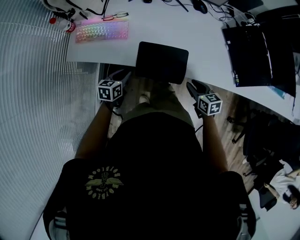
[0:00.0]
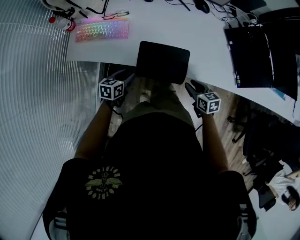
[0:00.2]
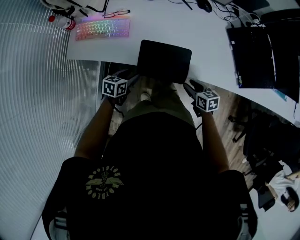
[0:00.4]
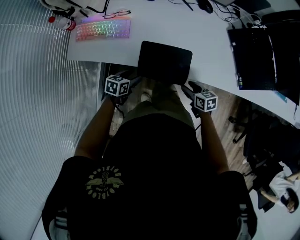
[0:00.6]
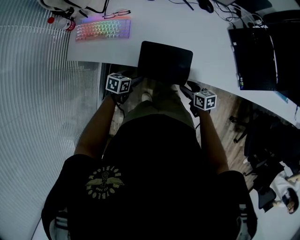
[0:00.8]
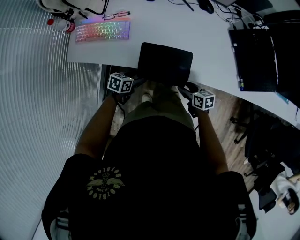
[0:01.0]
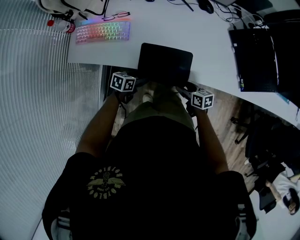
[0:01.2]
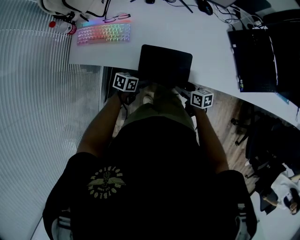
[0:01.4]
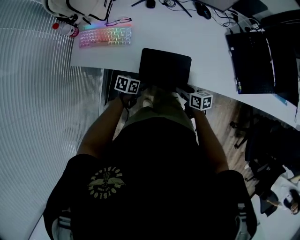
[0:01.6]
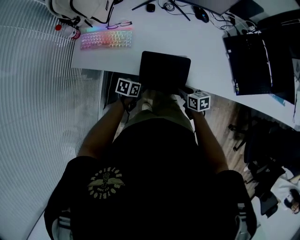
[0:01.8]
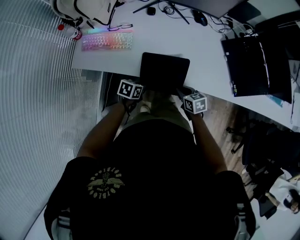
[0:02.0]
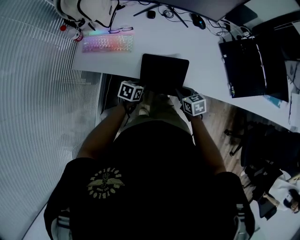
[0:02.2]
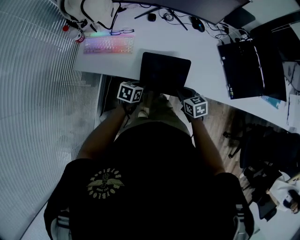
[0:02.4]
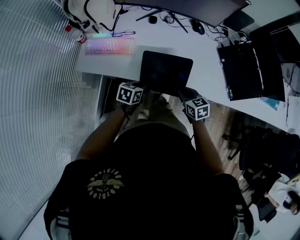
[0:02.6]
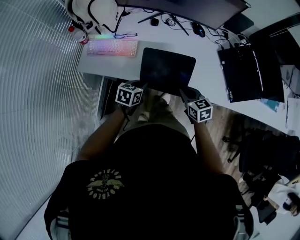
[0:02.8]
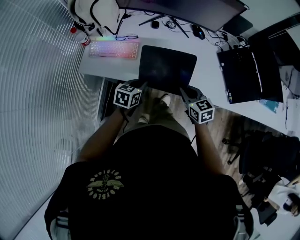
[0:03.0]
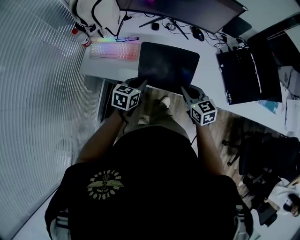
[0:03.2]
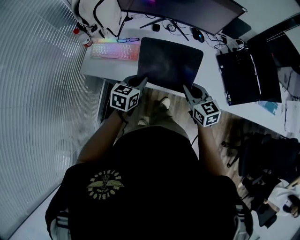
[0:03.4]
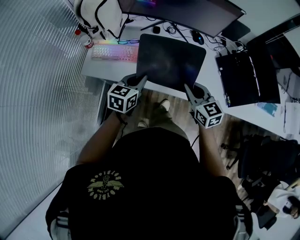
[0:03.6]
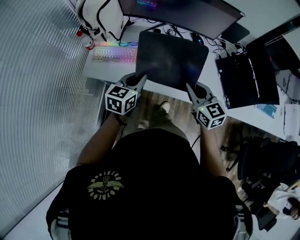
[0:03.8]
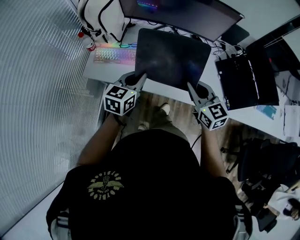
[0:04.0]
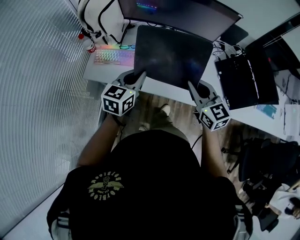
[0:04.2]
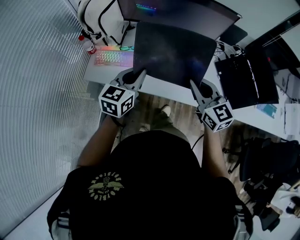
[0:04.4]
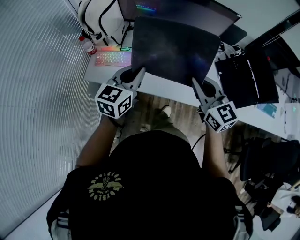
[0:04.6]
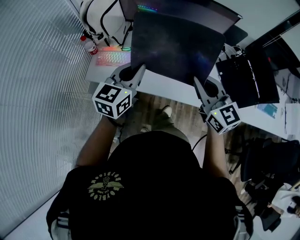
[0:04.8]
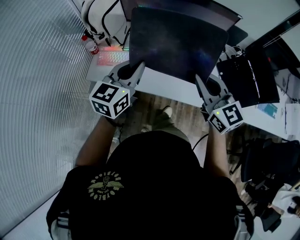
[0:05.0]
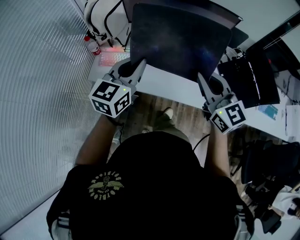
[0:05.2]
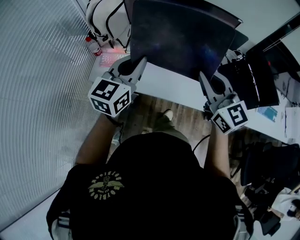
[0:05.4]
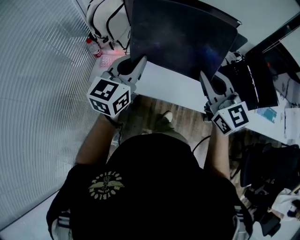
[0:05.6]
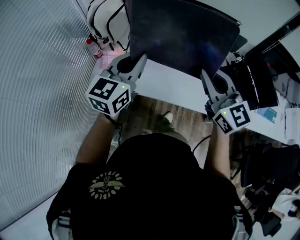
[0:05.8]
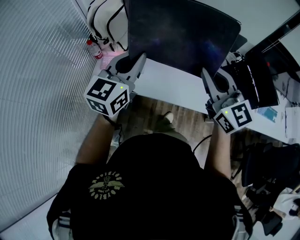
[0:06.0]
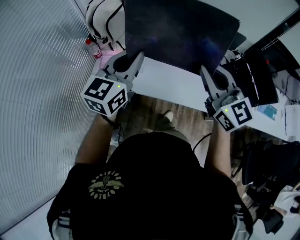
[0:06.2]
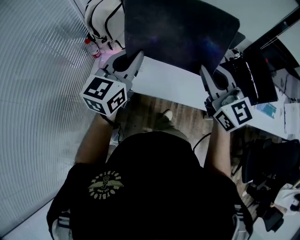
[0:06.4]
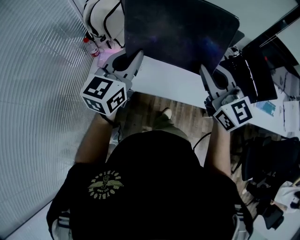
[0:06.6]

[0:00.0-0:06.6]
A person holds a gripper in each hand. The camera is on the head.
0.0 to 1.6 s: The left gripper shifts by some 10 cm, changes its angle by roughly 30 degrees, and opens, then closes once more; the right gripper moves downward, some 5 cm.
1.6 to 3.2 s: Both grippers move upward, about 20 cm. The right gripper turns by approximately 40 degrees, and closes; the left gripper changes its angle by roughly 30 degrees, and closes.
3.2 to 5.0 s: The grippers both shift upward by roughly 25 cm. The left gripper rotates approximately 30 degrees; the right gripper changes its angle by about 30 degrees.
5.0 to 6.6 s: The grippers both shift upward by approximately 10 cm.

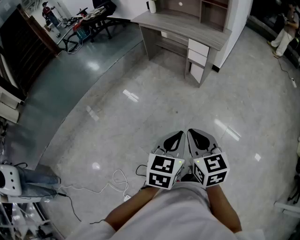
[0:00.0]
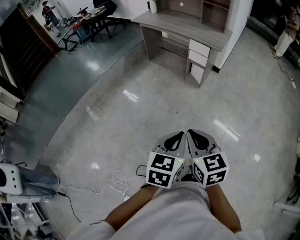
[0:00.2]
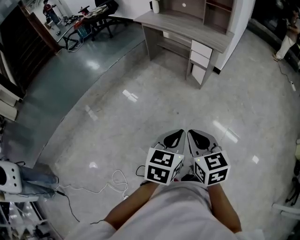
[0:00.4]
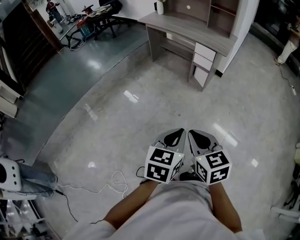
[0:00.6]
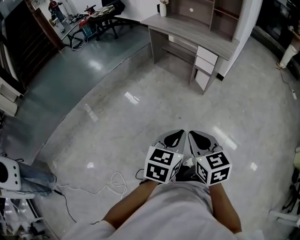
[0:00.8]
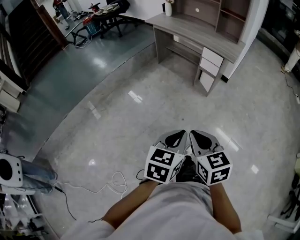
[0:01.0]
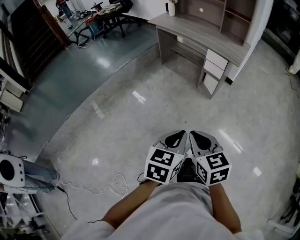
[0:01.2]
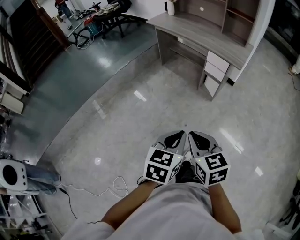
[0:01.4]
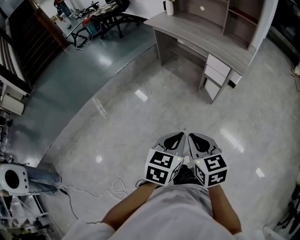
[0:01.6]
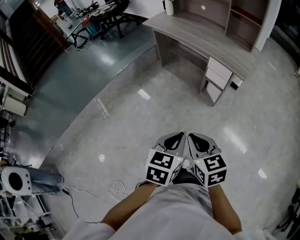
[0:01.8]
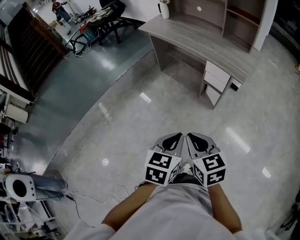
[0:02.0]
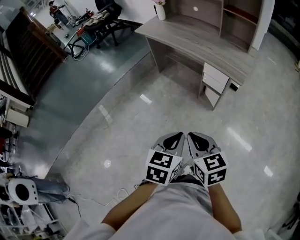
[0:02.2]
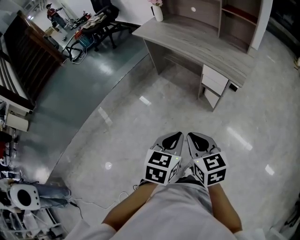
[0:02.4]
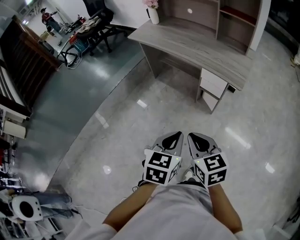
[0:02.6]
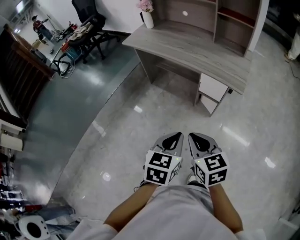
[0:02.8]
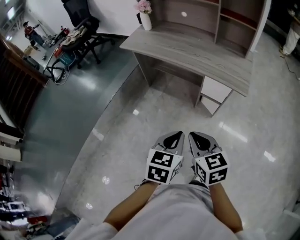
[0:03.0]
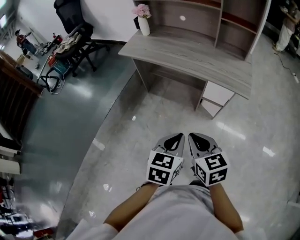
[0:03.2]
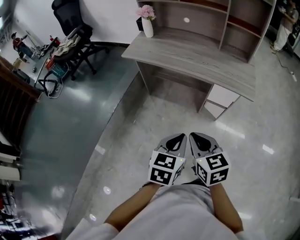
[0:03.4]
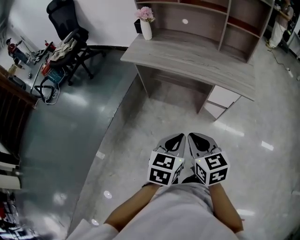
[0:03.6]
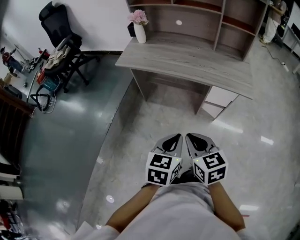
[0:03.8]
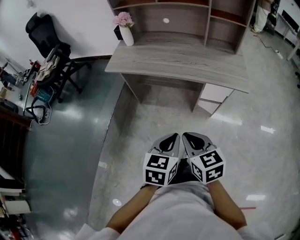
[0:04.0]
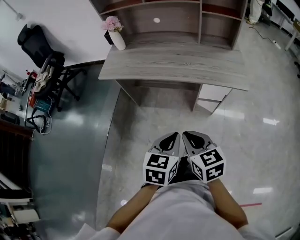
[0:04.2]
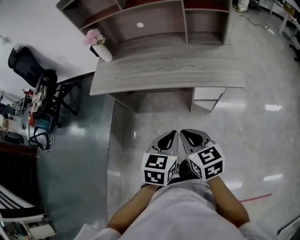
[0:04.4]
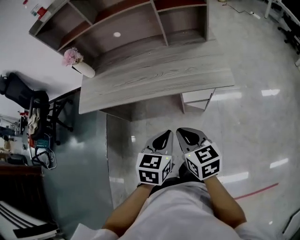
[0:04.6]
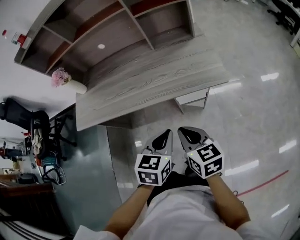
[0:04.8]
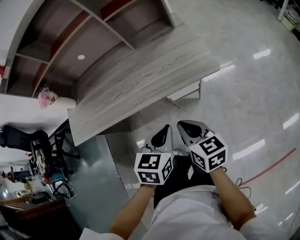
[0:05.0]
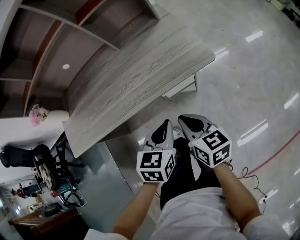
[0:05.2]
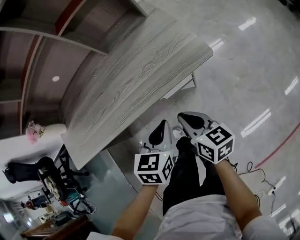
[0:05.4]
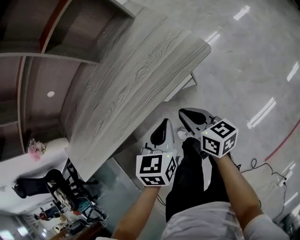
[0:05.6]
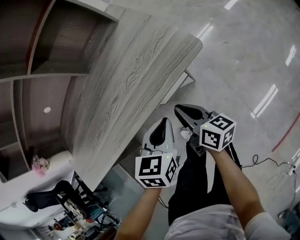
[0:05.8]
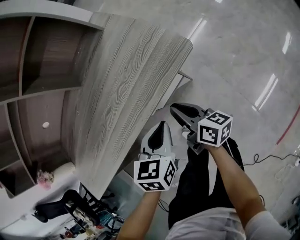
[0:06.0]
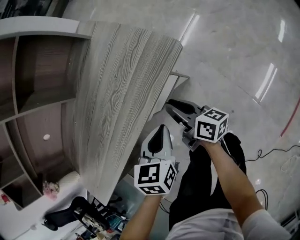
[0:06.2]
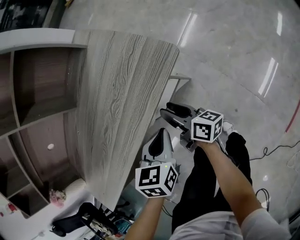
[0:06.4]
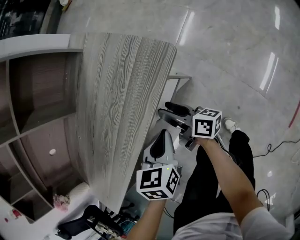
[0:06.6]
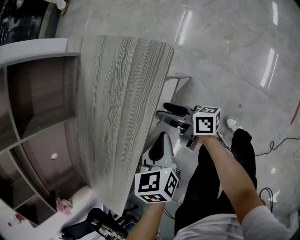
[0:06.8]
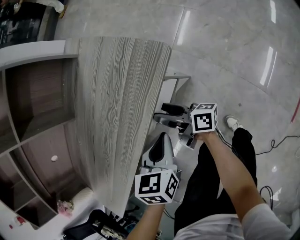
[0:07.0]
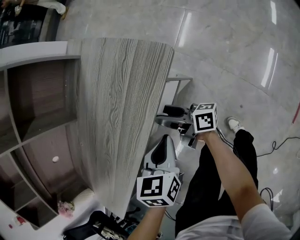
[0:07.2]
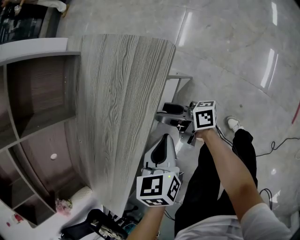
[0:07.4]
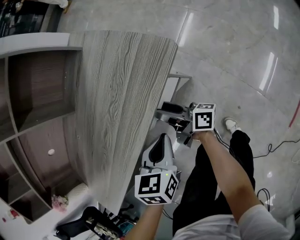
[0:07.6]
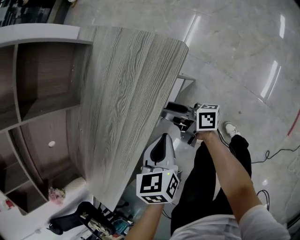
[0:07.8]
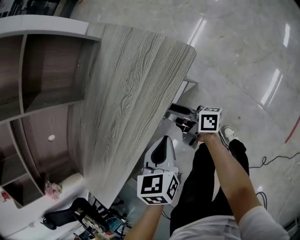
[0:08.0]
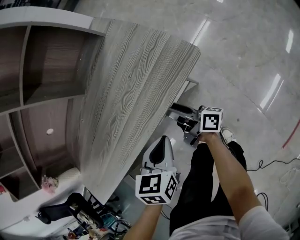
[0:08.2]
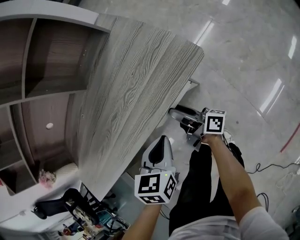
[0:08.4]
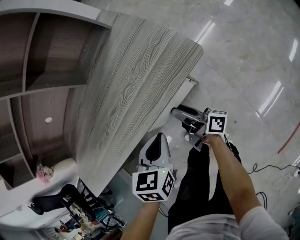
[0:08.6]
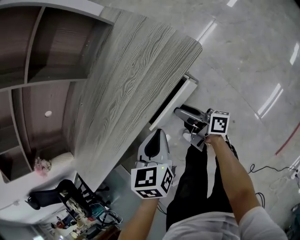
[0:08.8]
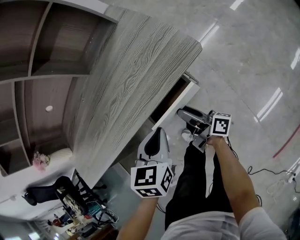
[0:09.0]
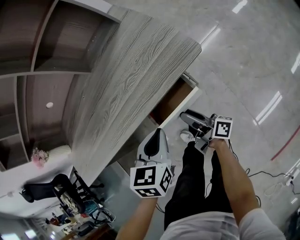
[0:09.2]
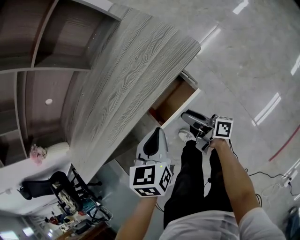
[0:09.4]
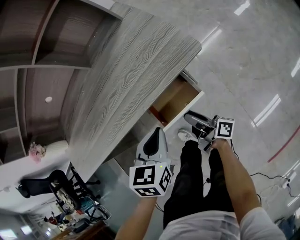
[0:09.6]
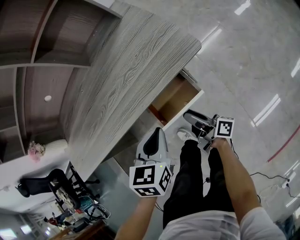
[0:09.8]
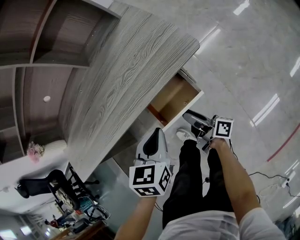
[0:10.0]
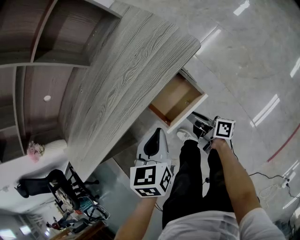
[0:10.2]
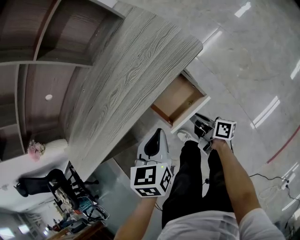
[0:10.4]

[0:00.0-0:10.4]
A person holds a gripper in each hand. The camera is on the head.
0.0 to 1.4 s: The two grippers go about 15 cm forward.
1.4 to 3.0 s: The grippers both shift forward by about 35 cm.
3.0 to 4.4 s: Both grippers move forward and to the left, about 20 cm. The right gripper changes its angle by roughly 20 degrees. Meanwhile the left gripper rotates approximately 20 degrees.
4.4 to 6.0 s: The right gripper moves approximately 40 cm, and changes its angle by about 70 degrees, while the left gripper moves roughly 35 cm, and turns by some 40 degrees.
6.0 to 7.4 s: The right gripper shifts approximately 5 cm forward, changes its angle by some 30 degrees, and opens.
7.4 to 9.0 s: The right gripper moves backward, roughly 5 cm. Meanwhile the left gripper travels upward by approximately 5 cm.
9.0 to 10.4 s: The right gripper ends up approximately 5 cm from where it was, and closes its fingers.

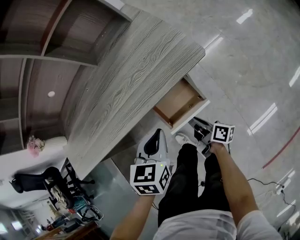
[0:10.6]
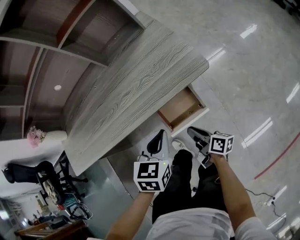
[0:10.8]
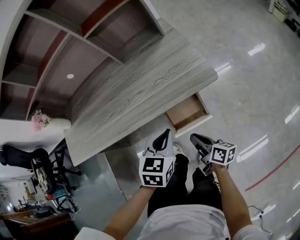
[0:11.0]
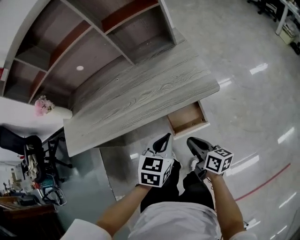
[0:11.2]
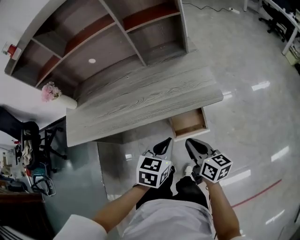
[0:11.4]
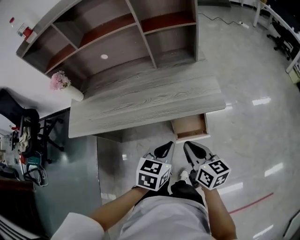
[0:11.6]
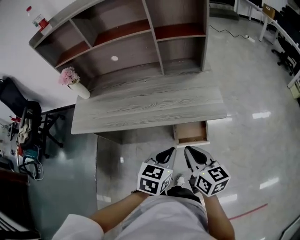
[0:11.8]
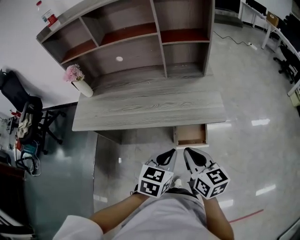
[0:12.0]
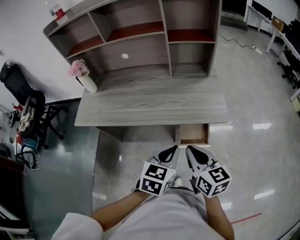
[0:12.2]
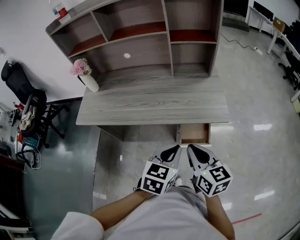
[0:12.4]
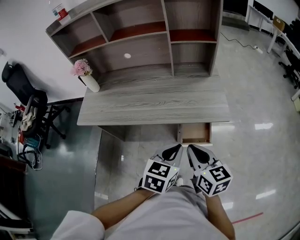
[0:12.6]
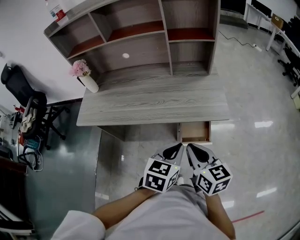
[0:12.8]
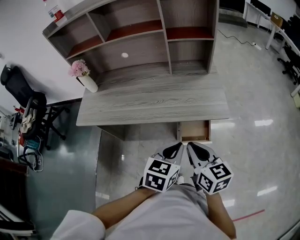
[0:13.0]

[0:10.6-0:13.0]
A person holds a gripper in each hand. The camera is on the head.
10.6 to 11.8 s: The right gripper goes about 35 cm upward, and rolls counterclockwise, seen from behind, by roughly 60 degrees; the left gripper shifts about 15 cm upward and backward.
11.8 to 13.0 s: The grippers stay close to where they were, moving slightly.

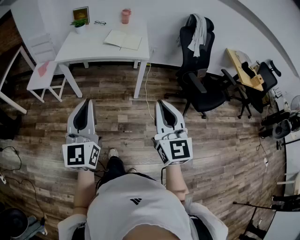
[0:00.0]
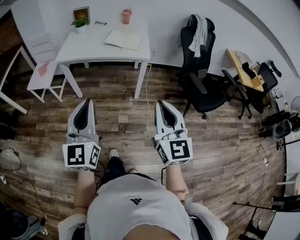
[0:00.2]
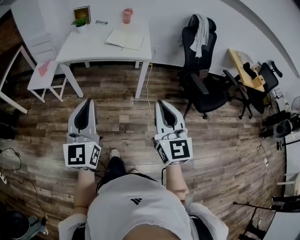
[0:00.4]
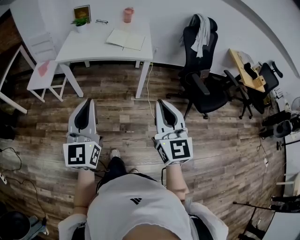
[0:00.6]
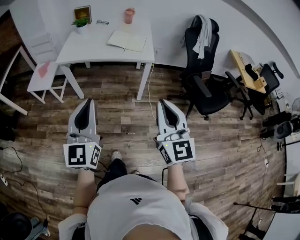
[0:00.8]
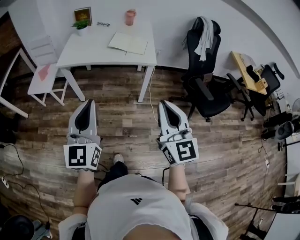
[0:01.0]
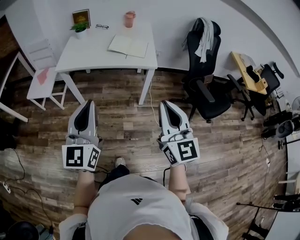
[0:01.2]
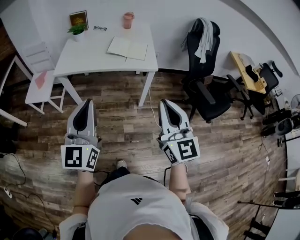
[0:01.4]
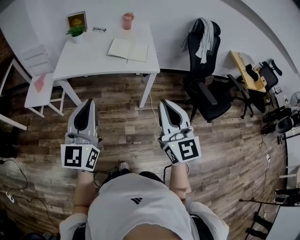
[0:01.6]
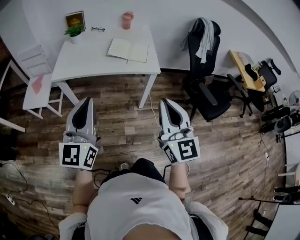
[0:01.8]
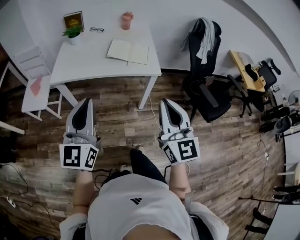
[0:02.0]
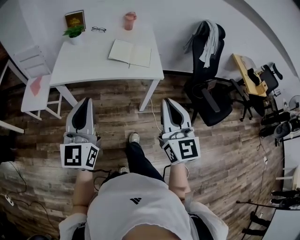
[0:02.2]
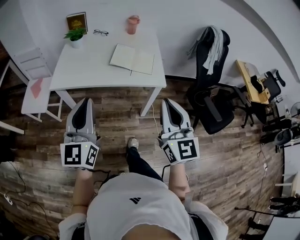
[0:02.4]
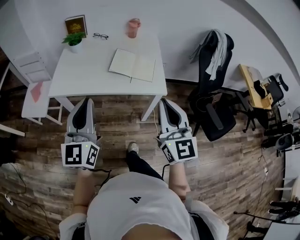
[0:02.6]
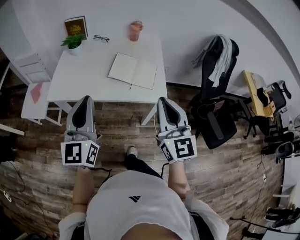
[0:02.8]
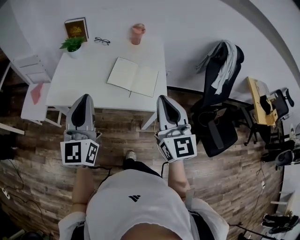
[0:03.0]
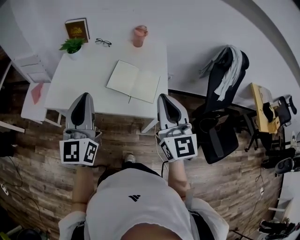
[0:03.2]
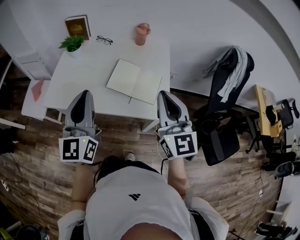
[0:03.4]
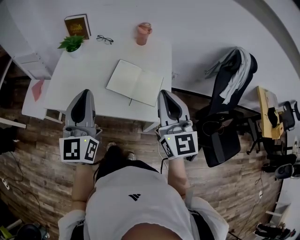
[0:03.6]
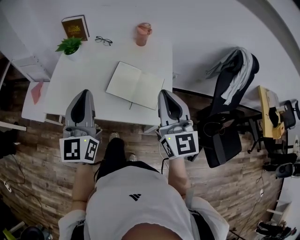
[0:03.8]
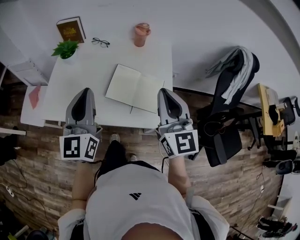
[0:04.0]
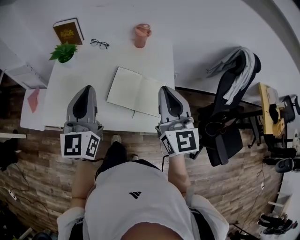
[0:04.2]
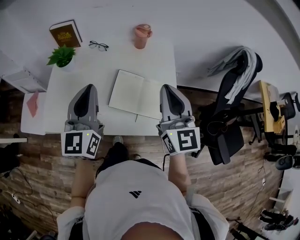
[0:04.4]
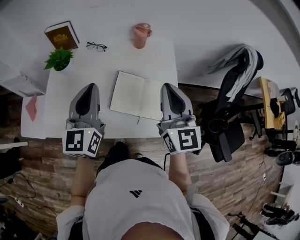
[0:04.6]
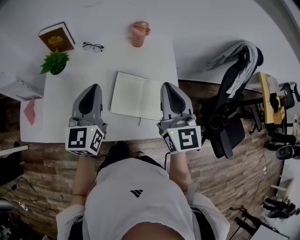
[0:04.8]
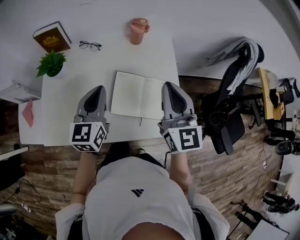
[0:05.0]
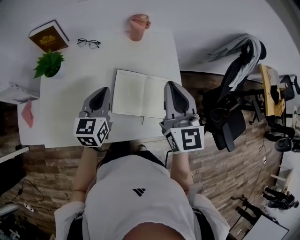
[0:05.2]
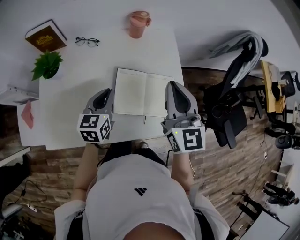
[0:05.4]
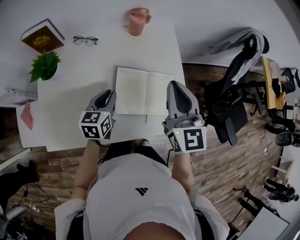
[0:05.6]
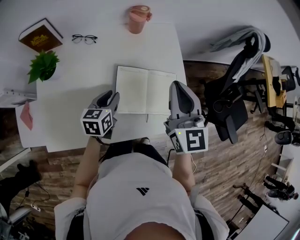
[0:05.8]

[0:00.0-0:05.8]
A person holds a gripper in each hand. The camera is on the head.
0.0 to 1.4 s: The two grippers go roughly 15 cm forward and to the left.
1.4 to 2.8 s: Both grippers move forward, about 25 cm.
2.8 to 4.4 s: Both grippers travel together forward, about 25 cm.
4.4 to 5.8 s: The left gripper shifts roughly 25 cm downward, tilts its fingers about 40 degrees downward, and opens. Meanwhile the right gripper goes about 10 cm forward and downward.
